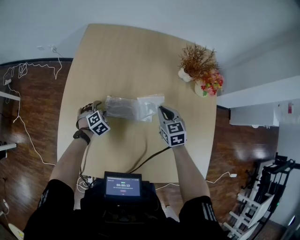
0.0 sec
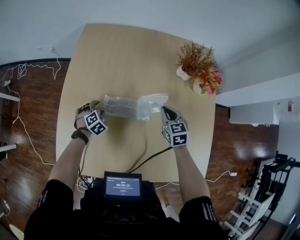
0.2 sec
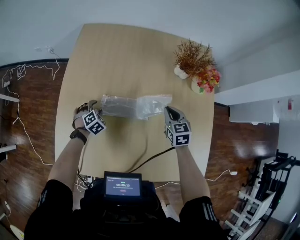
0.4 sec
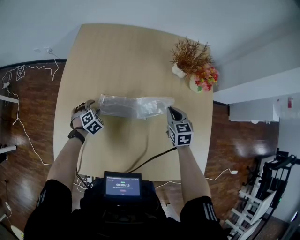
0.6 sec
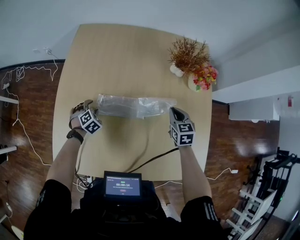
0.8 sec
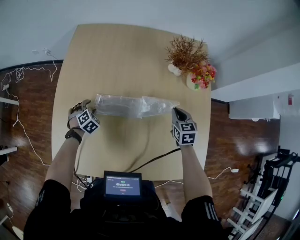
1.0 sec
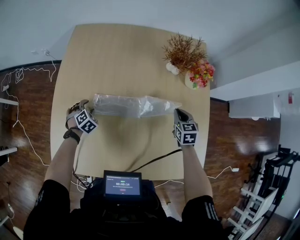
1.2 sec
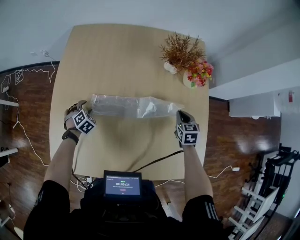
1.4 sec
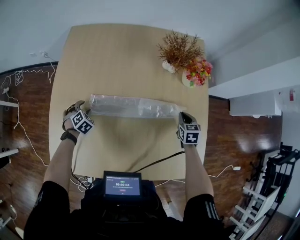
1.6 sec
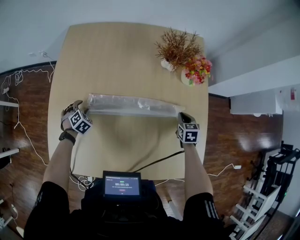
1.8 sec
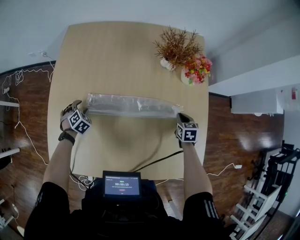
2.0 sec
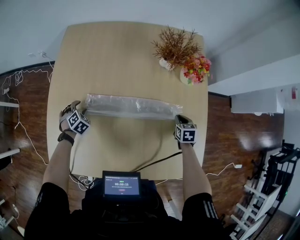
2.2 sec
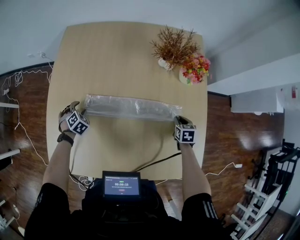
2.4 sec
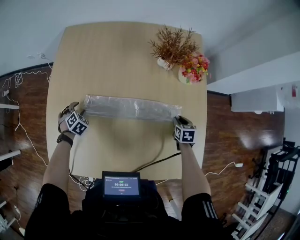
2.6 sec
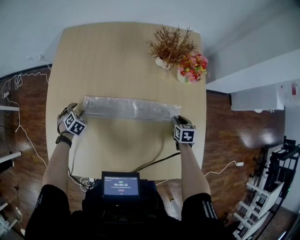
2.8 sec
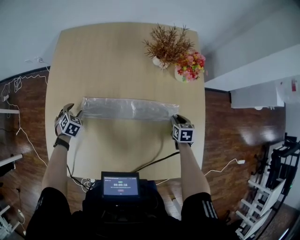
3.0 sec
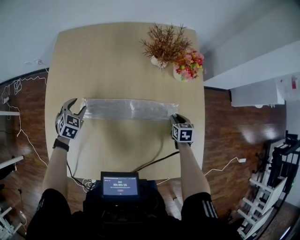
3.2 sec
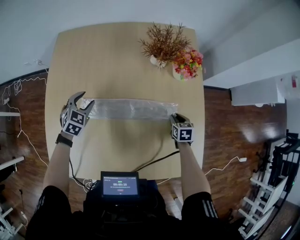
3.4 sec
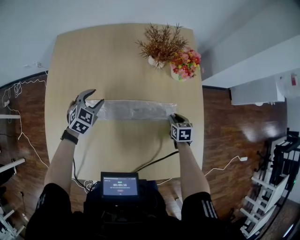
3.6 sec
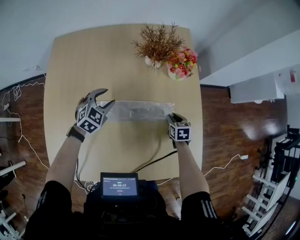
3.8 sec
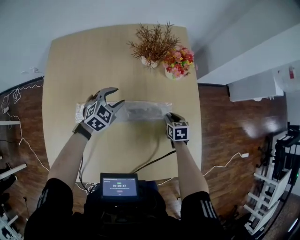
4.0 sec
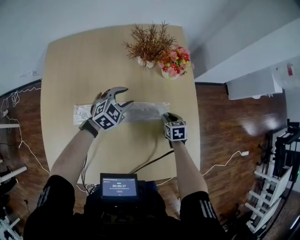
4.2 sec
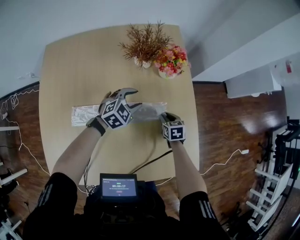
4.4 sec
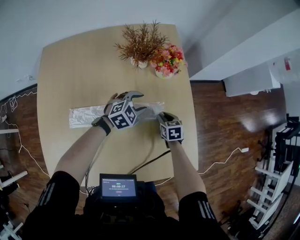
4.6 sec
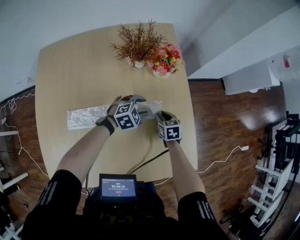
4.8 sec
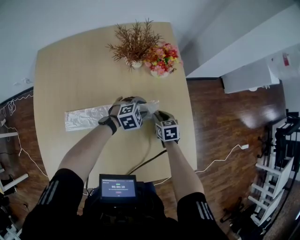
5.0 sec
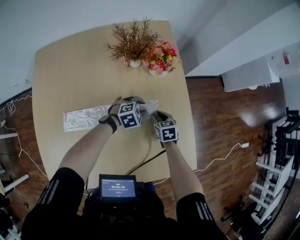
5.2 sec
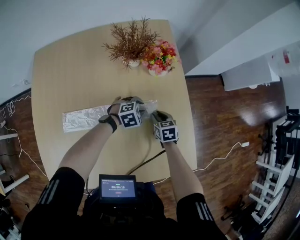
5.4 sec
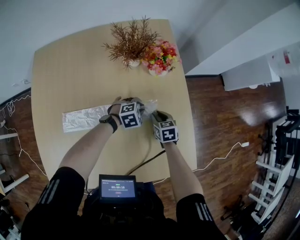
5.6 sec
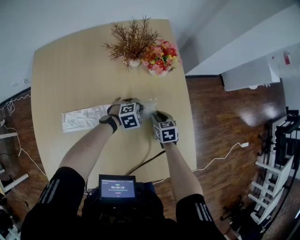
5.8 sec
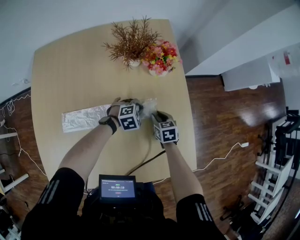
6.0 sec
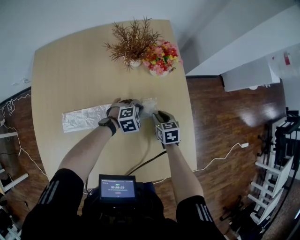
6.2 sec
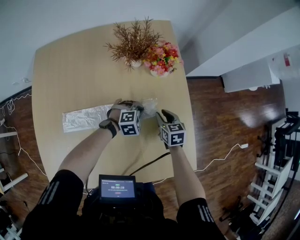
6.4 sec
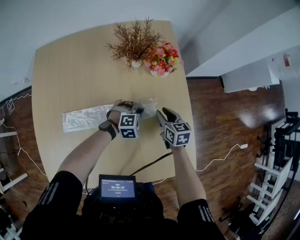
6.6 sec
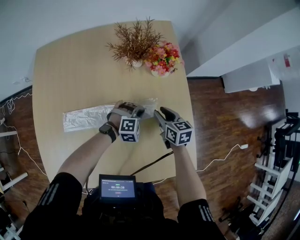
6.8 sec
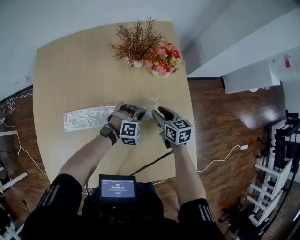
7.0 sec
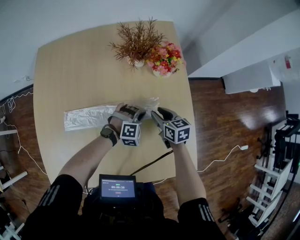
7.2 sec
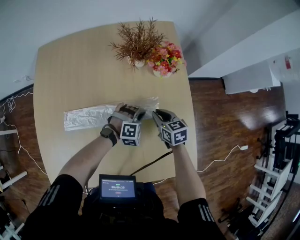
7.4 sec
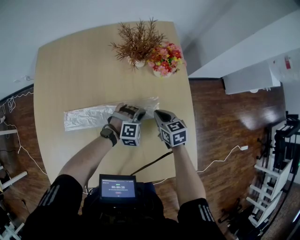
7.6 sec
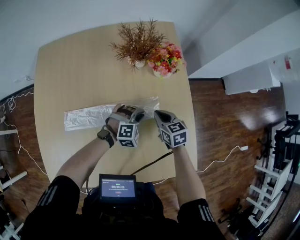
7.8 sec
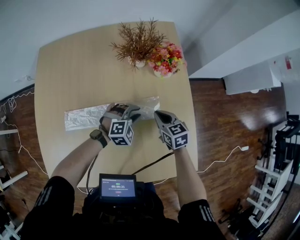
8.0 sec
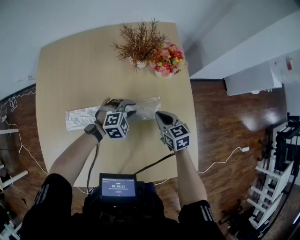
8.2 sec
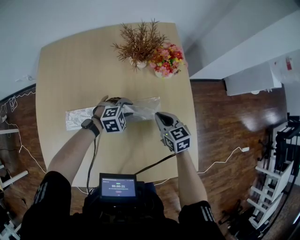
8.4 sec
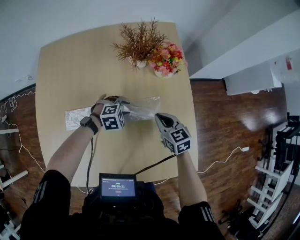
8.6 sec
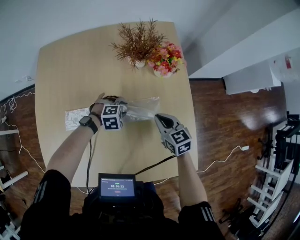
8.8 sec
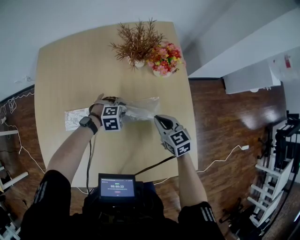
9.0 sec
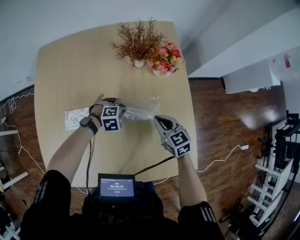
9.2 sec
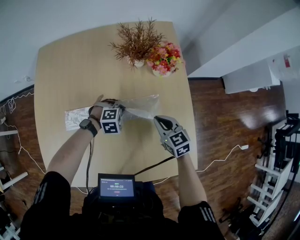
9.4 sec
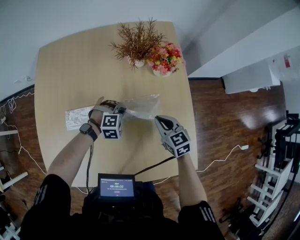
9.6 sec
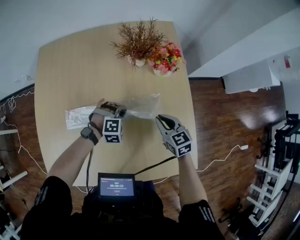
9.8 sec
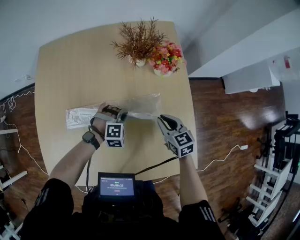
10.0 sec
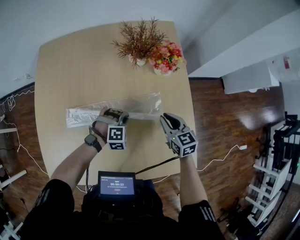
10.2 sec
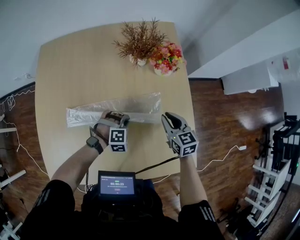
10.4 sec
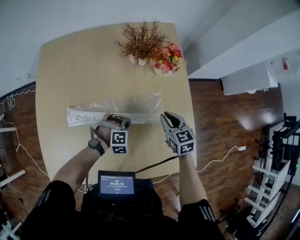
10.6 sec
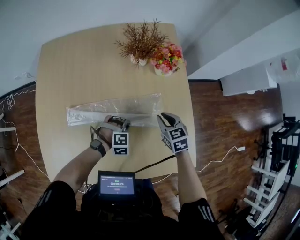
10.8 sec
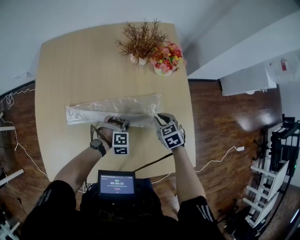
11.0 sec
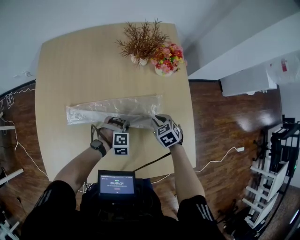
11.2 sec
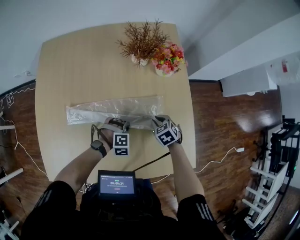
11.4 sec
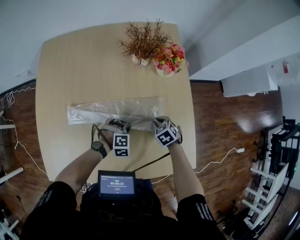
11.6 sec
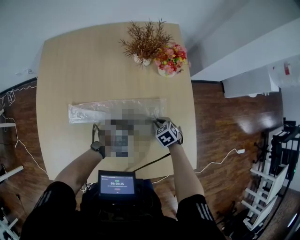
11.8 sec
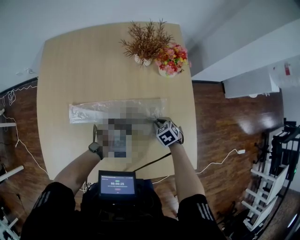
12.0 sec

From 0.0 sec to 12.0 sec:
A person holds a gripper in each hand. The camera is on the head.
From 0.0 sec to 1.6 sec: The right gripper shifts some 25 cm to the right, and changes its angle by some 20 degrees.
From 1.6 sec to 3.0 sec: The right gripper moves downward, some 5 cm.
From 3.0 sec to 4.4 sec: The left gripper changes place by roughly 40 cm, and turns by some 50 degrees.
From 4.4 sec to 6.0 sec: The left gripper moves downward and to the right, about 15 cm, swivels roughly 20 degrees, and closes.
From 6.0 sec to 7.6 sec: The right gripper heads upward, covering some 5 cm. Meanwhile the left gripper changes its angle by about 30 degrees.
From 7.6 sec to 9.0 sec: The left gripper heads to the left, covering about 10 cm, swivels roughly 30 degrees, and opens its fingers. The right gripper ends up some 5 cm from where it was.
From 9.0 sec to 10.4 sec: The left gripper moves backward, about 5 cm, and closes its fingers.
From 10.4 sec to 12.0 sec: The right gripper moves downward, some 15 cm, and points its fingers roughly 30 degrees further downward.

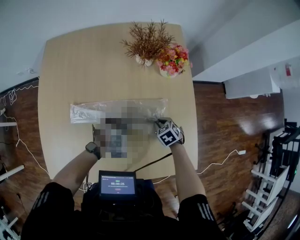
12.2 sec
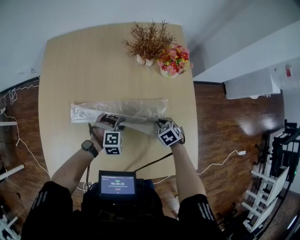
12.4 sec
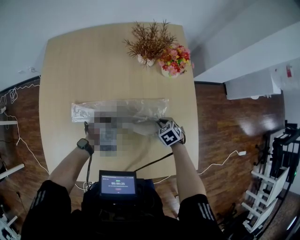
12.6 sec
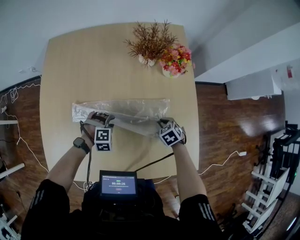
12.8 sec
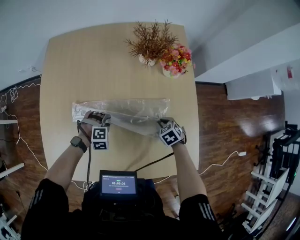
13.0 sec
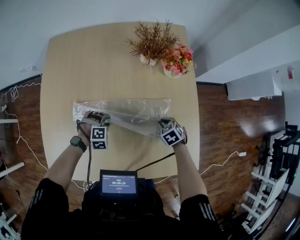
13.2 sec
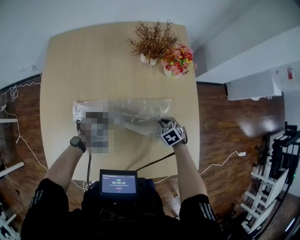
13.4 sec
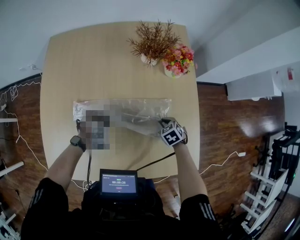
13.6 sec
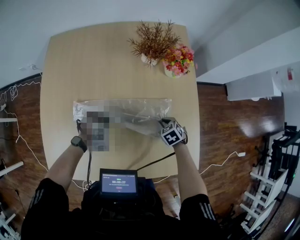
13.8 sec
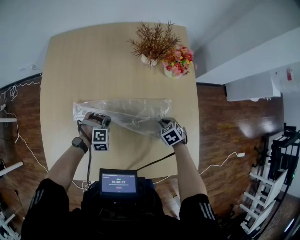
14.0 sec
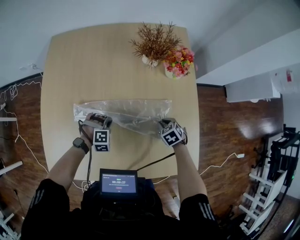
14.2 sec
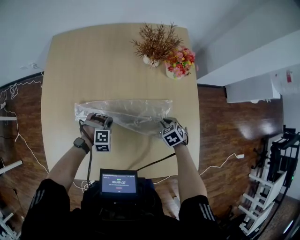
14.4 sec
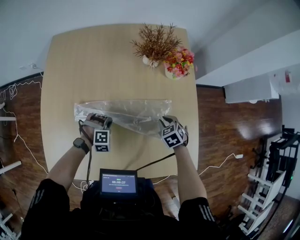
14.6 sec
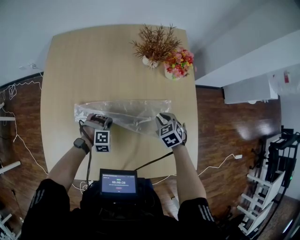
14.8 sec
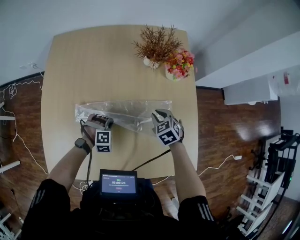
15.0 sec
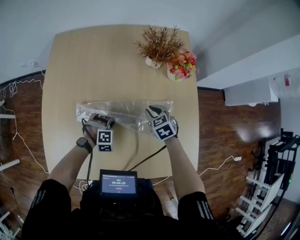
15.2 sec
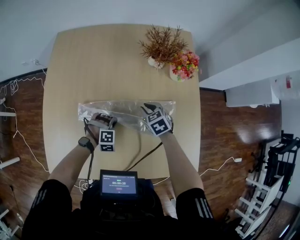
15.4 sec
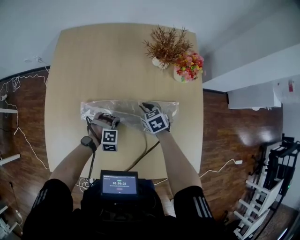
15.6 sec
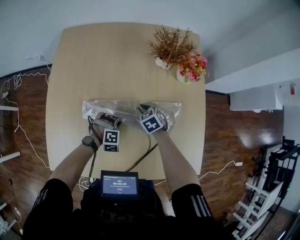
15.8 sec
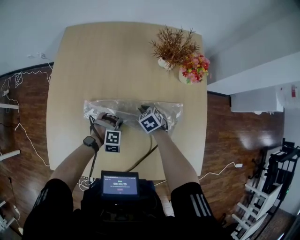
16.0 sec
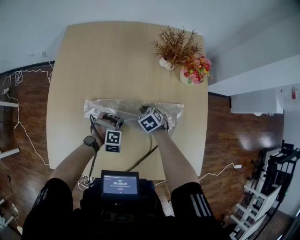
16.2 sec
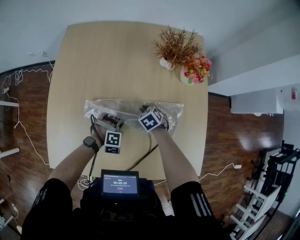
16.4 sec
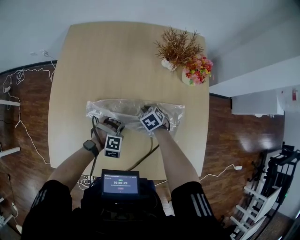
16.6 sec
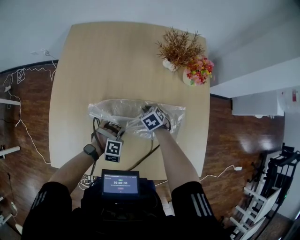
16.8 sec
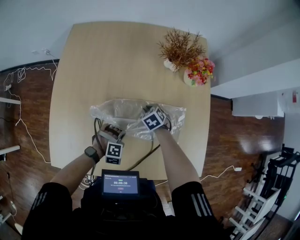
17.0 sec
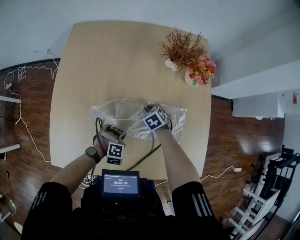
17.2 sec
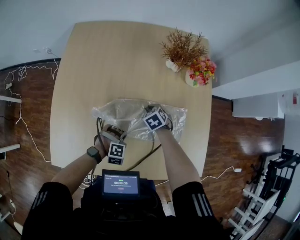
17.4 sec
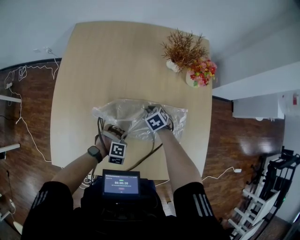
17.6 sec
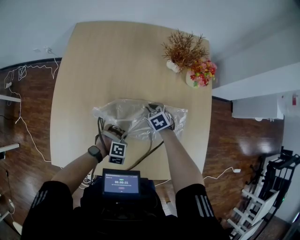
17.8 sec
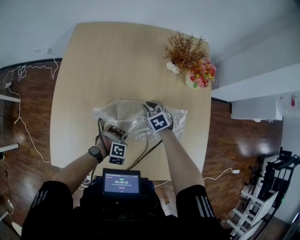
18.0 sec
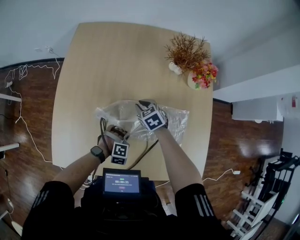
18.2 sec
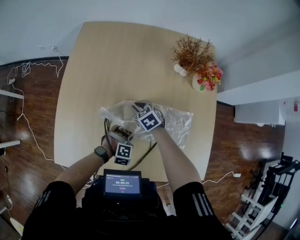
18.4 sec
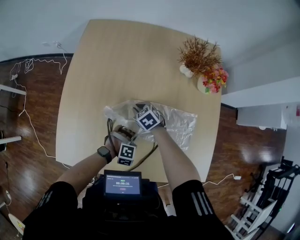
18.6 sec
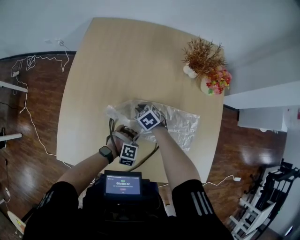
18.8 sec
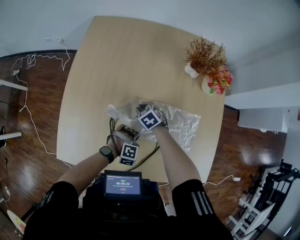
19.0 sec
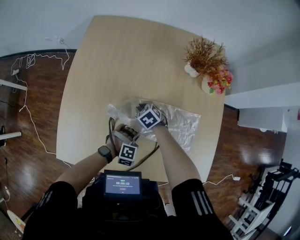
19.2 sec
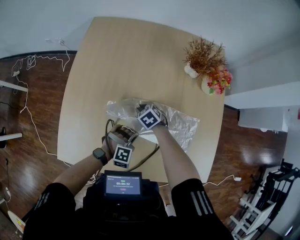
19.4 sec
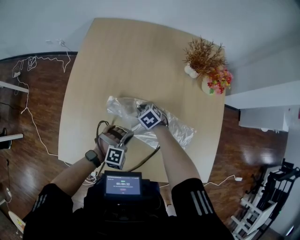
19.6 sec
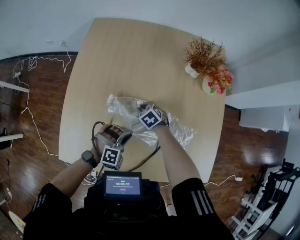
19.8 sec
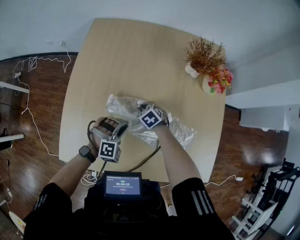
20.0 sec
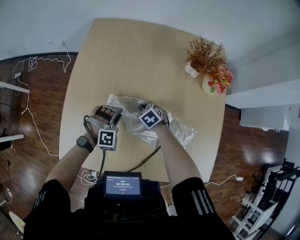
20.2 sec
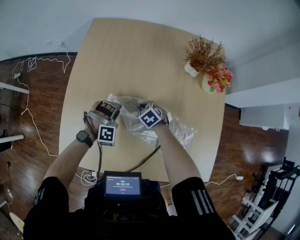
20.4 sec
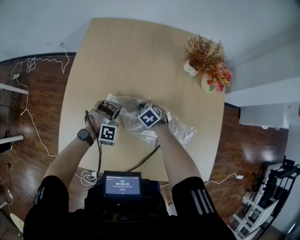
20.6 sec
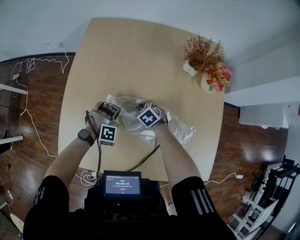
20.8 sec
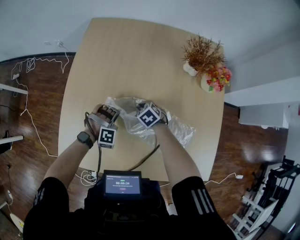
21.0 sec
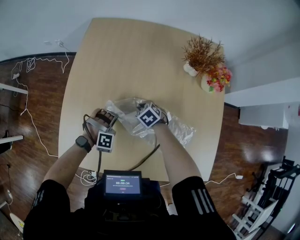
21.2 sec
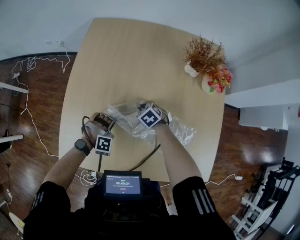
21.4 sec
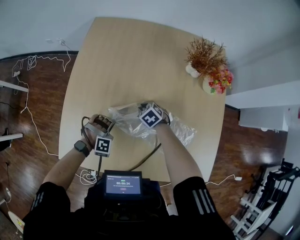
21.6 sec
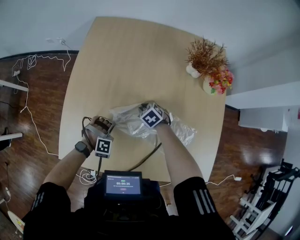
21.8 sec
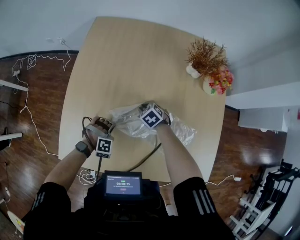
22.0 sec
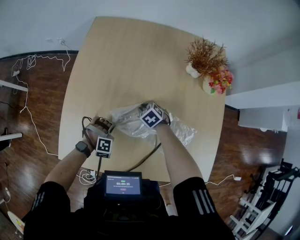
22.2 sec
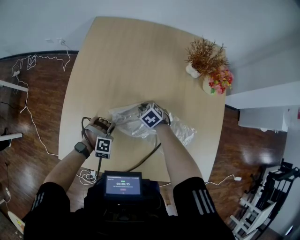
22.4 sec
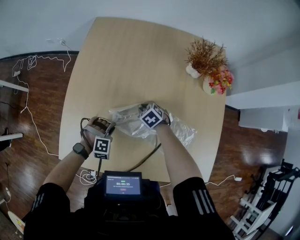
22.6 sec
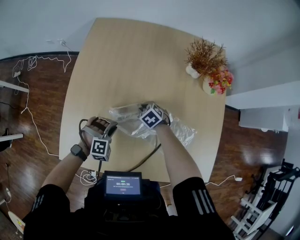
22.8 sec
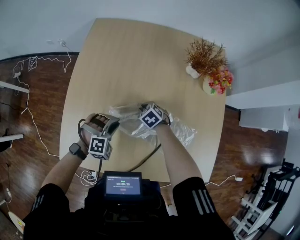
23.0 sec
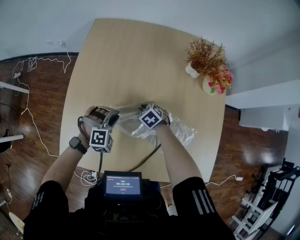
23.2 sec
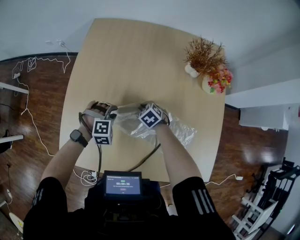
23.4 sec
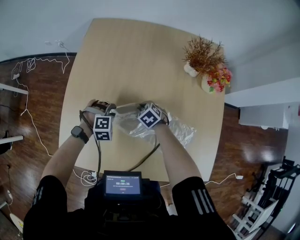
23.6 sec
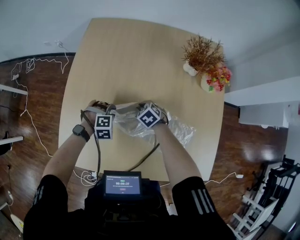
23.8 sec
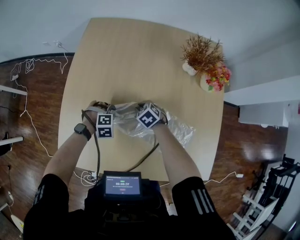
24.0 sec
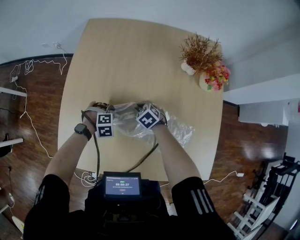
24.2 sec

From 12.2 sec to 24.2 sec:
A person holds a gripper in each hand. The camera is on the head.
From 12.2 sec to 13.8 sec: The left gripper shifts approximately 10 cm to the left.
From 13.8 sec to 15.2 sec: The right gripper heads upward, to the left and forward, covering about 15 cm.
From 15.2 sec to 16.6 sec: The right gripper is displaced downward and to the left by roughly 10 cm.
From 16.6 sec to 18.2 sec: The right gripper travels upward and to the left by about 10 cm, while the left gripper moves some 5 cm.
From 18.2 sec to 19.8 sec: The right gripper goes some 10 cm downward and to the left, while the left gripper moves upward, approximately 10 cm, and changes its angle by some 20 degrees.
From 19.8 sec to 21.2 sec: The left gripper heads forward, covering some 10 cm, and rotates some 20 degrees.
From 21.2 sec to 22.6 sec: The left gripper goes approximately 5 cm to the left.
From 22.6 sec to 24.2 sec: The left gripper reaches roughly 10 cm upward, then returns, and swivels some 20 degrees.
